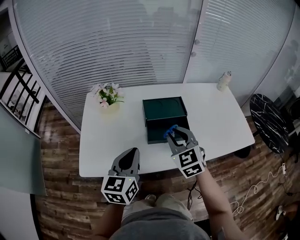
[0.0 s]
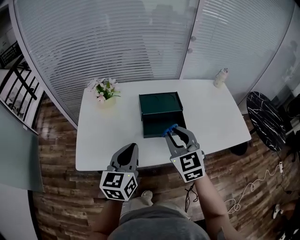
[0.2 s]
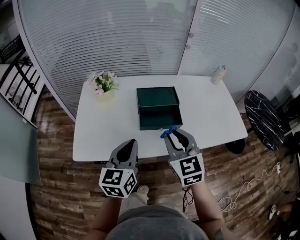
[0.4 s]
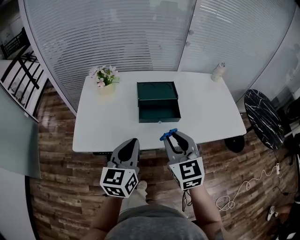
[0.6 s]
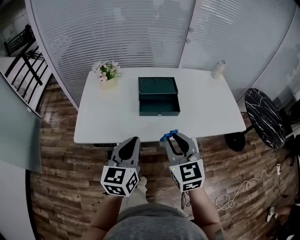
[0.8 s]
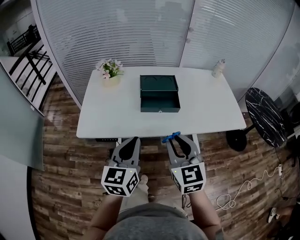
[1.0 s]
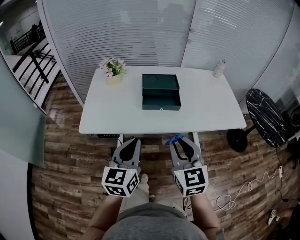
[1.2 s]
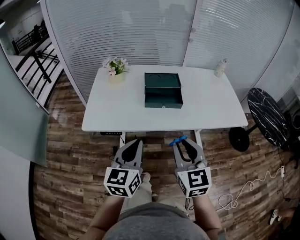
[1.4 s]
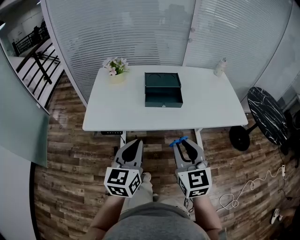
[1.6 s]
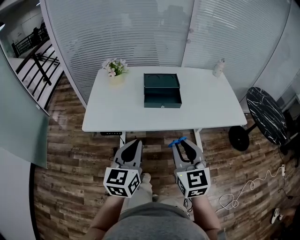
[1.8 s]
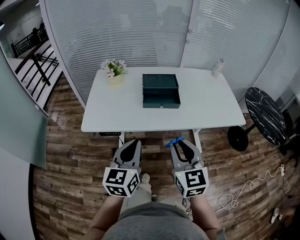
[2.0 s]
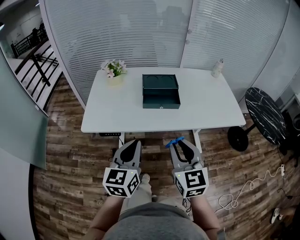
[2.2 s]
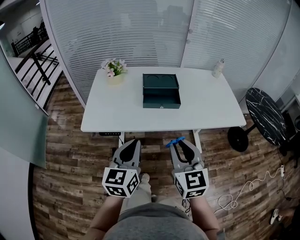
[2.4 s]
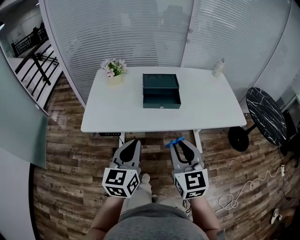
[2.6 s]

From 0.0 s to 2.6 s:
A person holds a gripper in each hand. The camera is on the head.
From 0.0 s to 1.2 s: Both grippers travel together backward, about 25 cm.
From 1.2 s to 2.6 s: The grippers stay close to where they were, moving slightly.

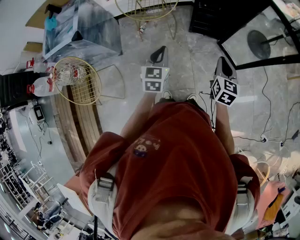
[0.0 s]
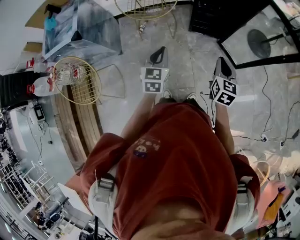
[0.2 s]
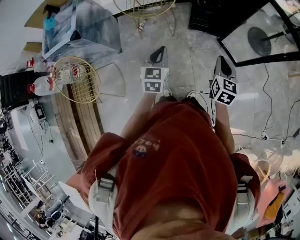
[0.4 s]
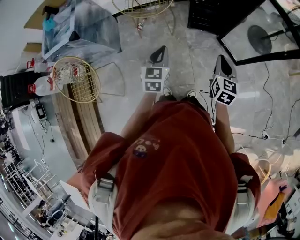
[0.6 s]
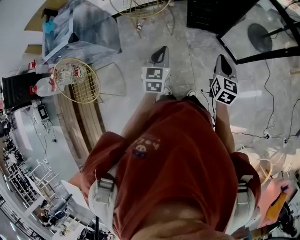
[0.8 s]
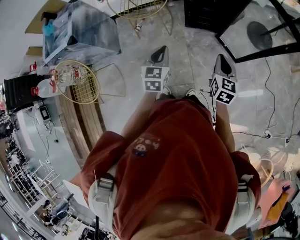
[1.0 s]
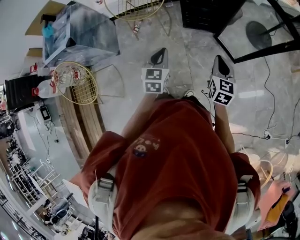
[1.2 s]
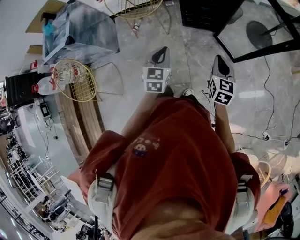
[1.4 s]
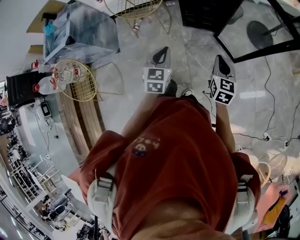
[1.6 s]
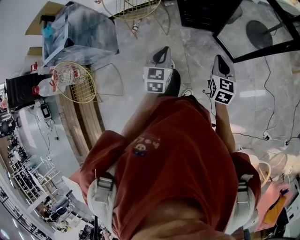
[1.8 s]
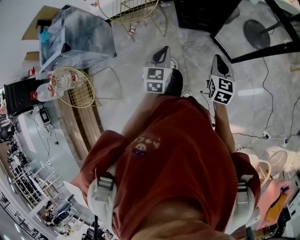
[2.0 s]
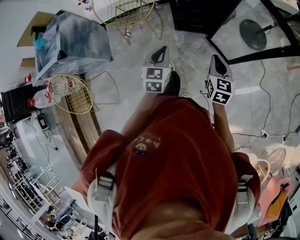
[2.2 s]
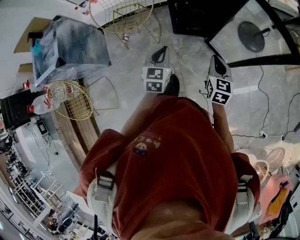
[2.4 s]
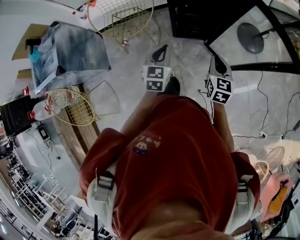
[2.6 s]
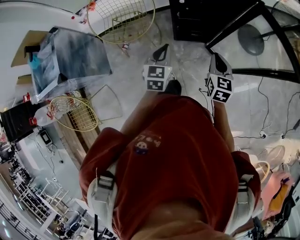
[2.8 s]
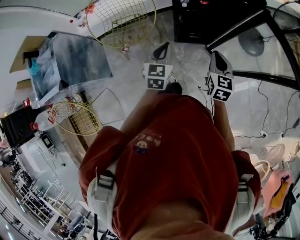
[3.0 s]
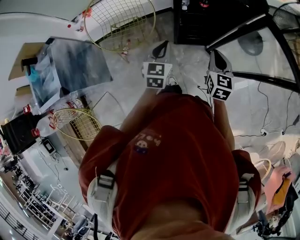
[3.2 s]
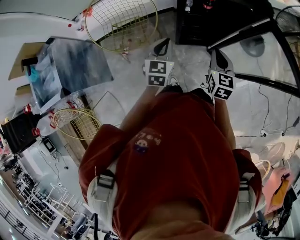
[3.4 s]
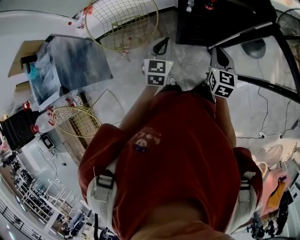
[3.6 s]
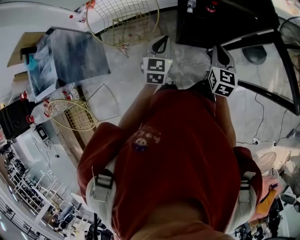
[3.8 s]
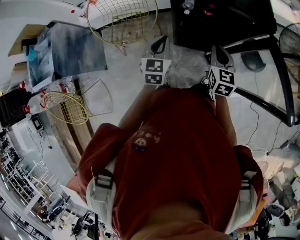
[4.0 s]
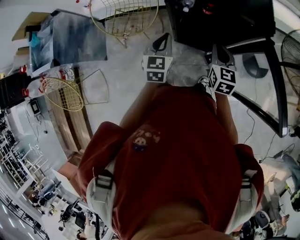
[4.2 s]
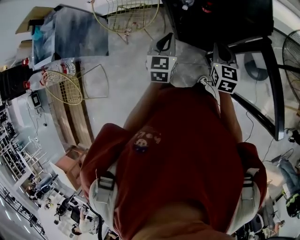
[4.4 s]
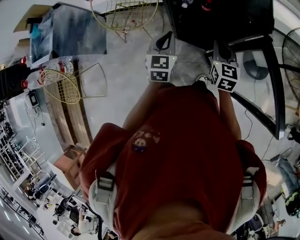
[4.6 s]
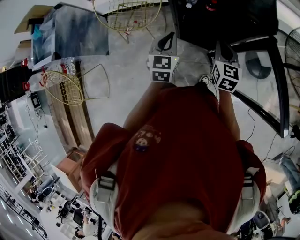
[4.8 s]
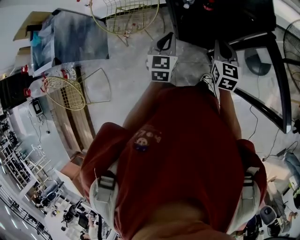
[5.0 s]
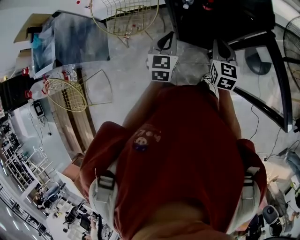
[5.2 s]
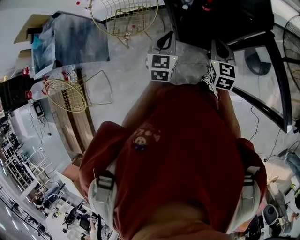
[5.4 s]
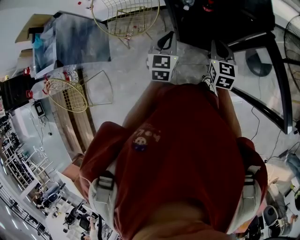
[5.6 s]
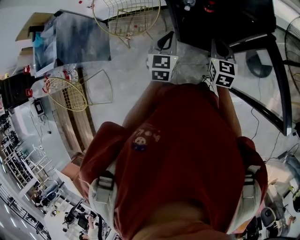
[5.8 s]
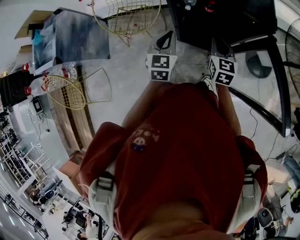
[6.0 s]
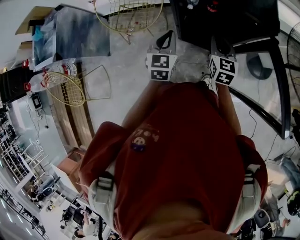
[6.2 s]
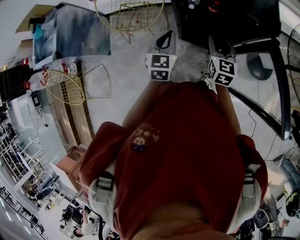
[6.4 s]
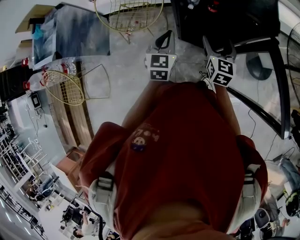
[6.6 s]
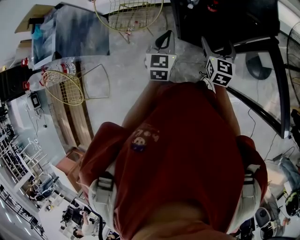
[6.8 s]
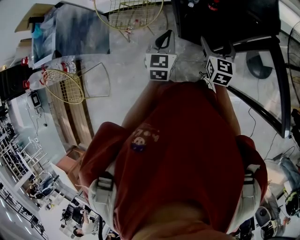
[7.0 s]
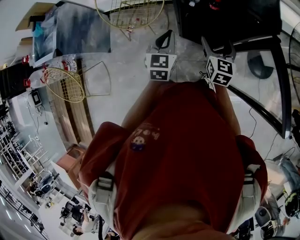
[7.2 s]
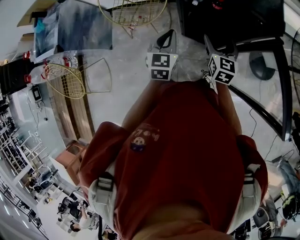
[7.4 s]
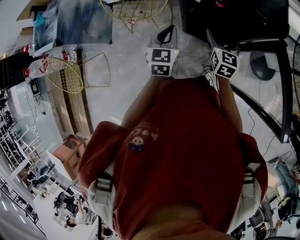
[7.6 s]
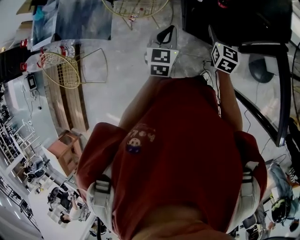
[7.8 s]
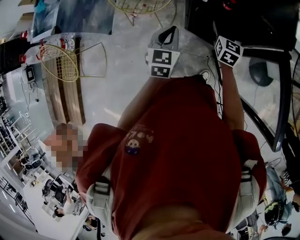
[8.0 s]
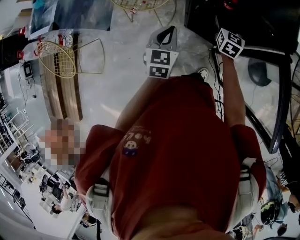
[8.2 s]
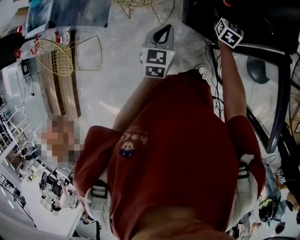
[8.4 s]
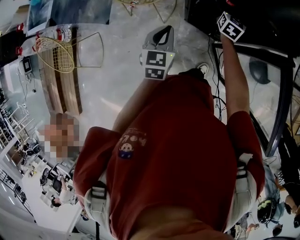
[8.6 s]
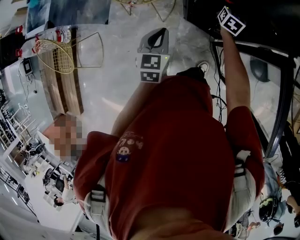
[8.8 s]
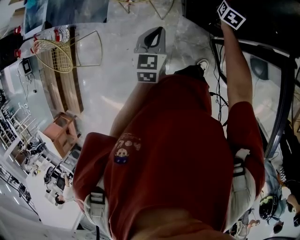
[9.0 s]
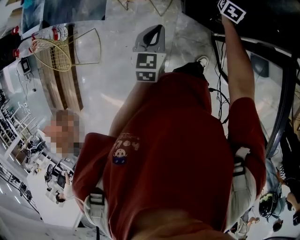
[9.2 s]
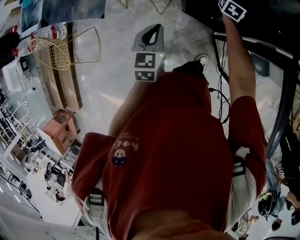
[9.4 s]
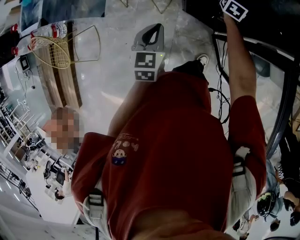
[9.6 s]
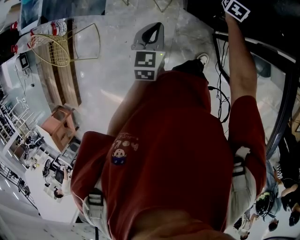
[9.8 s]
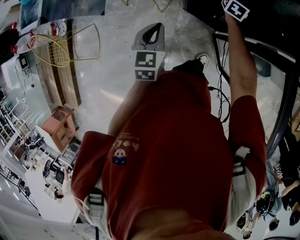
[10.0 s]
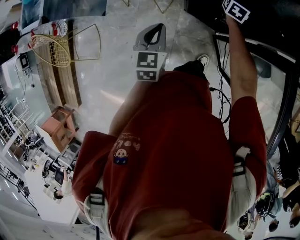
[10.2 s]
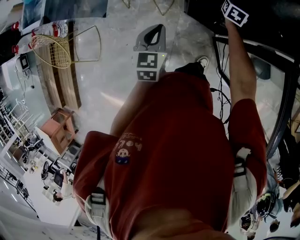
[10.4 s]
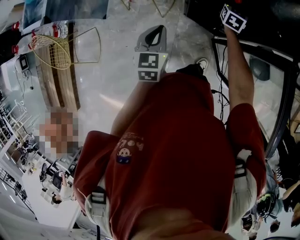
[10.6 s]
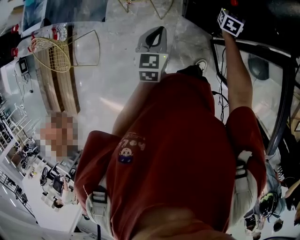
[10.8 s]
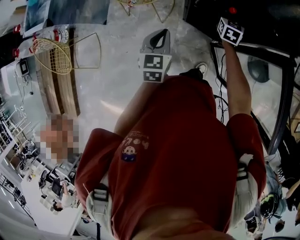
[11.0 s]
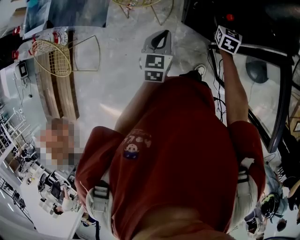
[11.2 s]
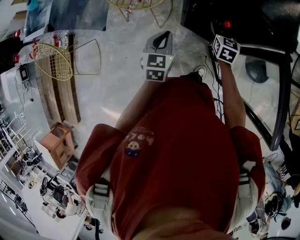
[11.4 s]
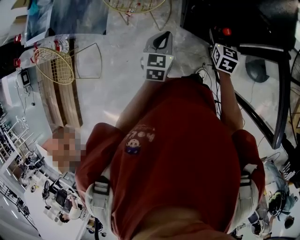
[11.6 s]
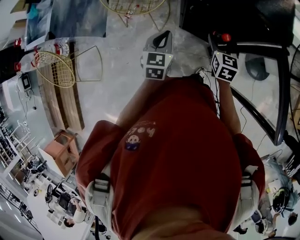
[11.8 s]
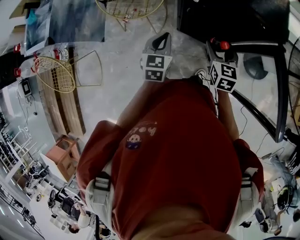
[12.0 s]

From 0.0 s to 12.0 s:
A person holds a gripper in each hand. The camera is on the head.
From 0.0 s to 1.6 s: Both grippers travel together to the right, roughly 15 cm.
From 1.6 s to 3.0 s: The two grippers go some 25 cm forward.
From 3.0 s to 4.4 s: The left gripper shifts some 15 cm to the right and forward. The right gripper heads forward and to the right, covering approximately 15 cm, and rotates some 20 degrees.
From 4.4 s to 6.0 s: The grippers move only a little.
From 6.0 s to 7.6 s: The right gripper opens its fingers.
From 7.6 s to 9.0 s: The right gripper shifts approximately 20 cm forward and downward, while the left gripper moves approximately 5 cm.
From 9.0 s to 10.4 s: There are only small adjustments of the grippers.
From 10.4 s to 12.0 s: The right gripper moves backward and upward, approximately 25 cm.

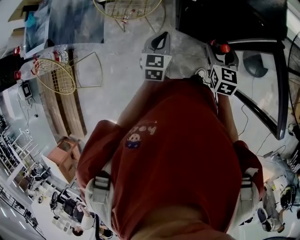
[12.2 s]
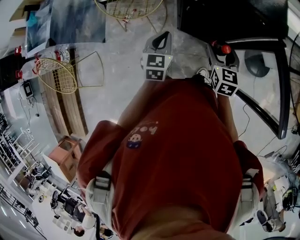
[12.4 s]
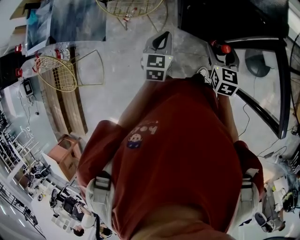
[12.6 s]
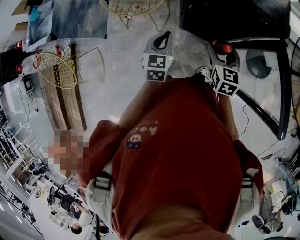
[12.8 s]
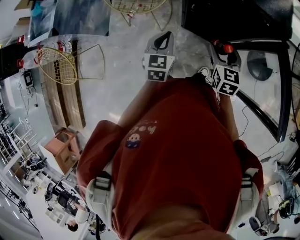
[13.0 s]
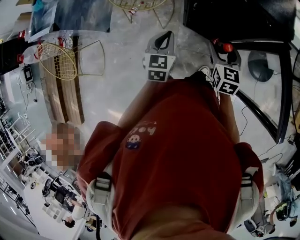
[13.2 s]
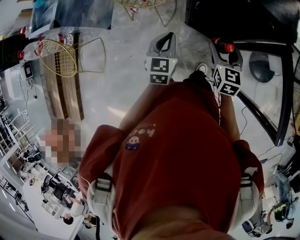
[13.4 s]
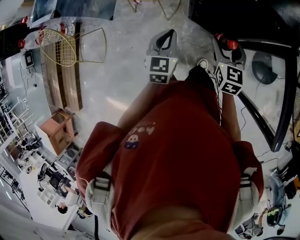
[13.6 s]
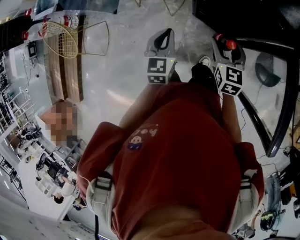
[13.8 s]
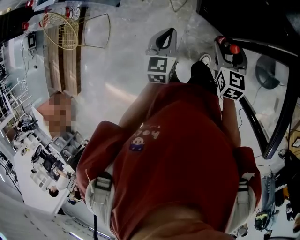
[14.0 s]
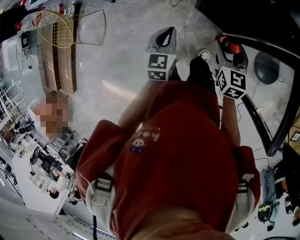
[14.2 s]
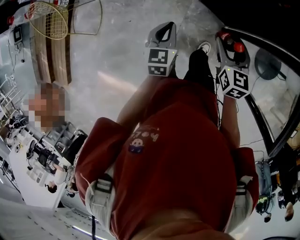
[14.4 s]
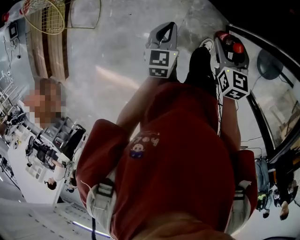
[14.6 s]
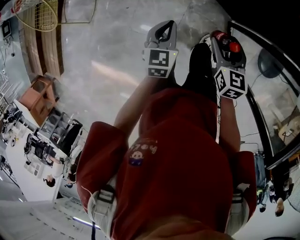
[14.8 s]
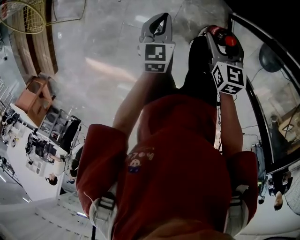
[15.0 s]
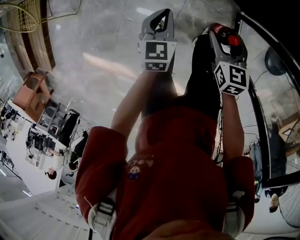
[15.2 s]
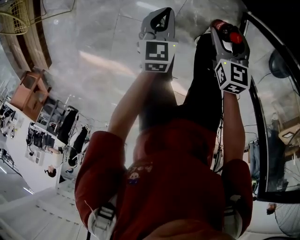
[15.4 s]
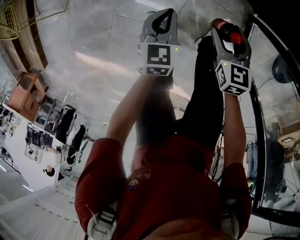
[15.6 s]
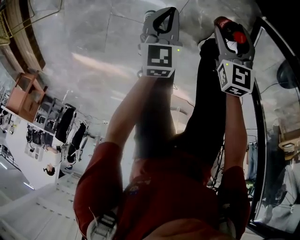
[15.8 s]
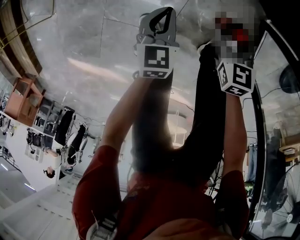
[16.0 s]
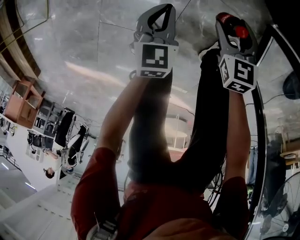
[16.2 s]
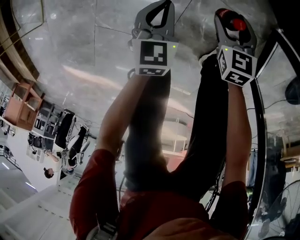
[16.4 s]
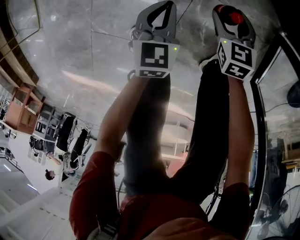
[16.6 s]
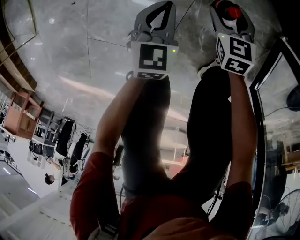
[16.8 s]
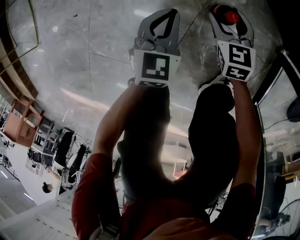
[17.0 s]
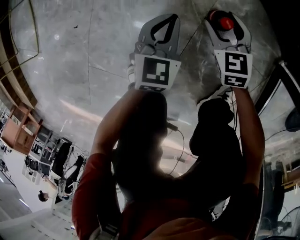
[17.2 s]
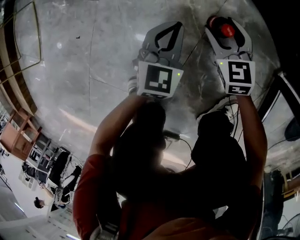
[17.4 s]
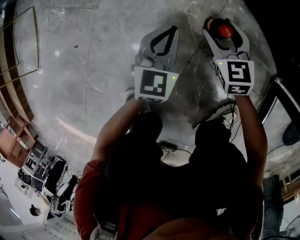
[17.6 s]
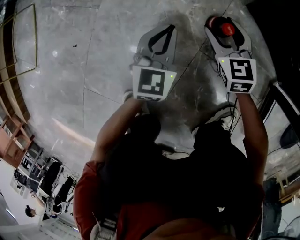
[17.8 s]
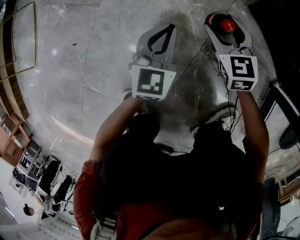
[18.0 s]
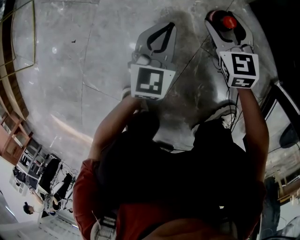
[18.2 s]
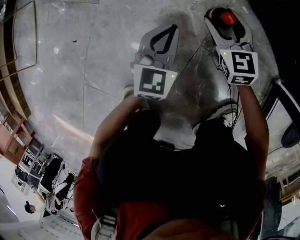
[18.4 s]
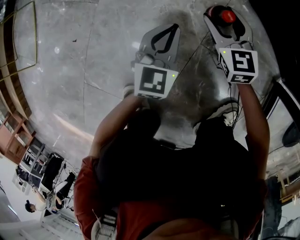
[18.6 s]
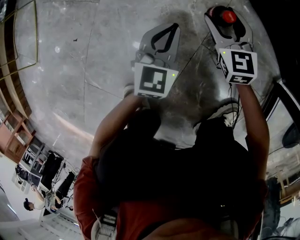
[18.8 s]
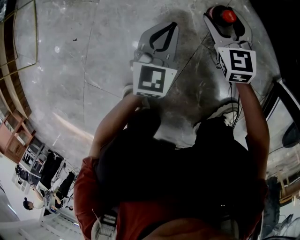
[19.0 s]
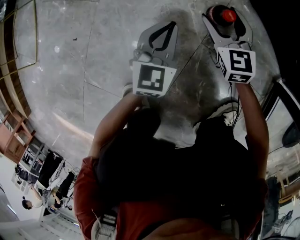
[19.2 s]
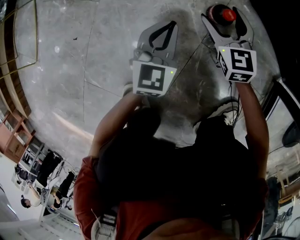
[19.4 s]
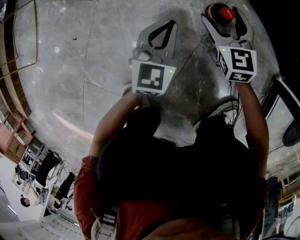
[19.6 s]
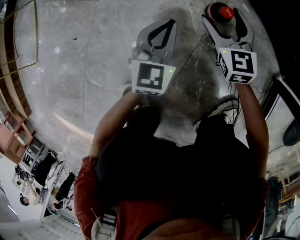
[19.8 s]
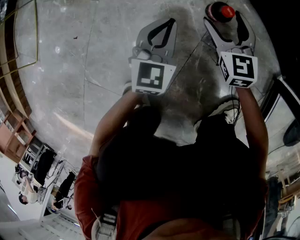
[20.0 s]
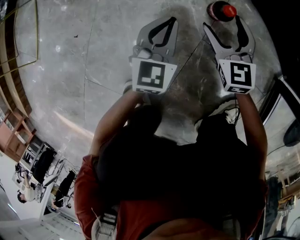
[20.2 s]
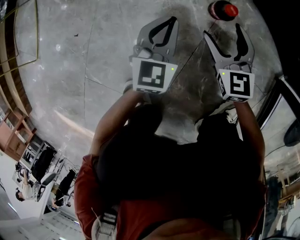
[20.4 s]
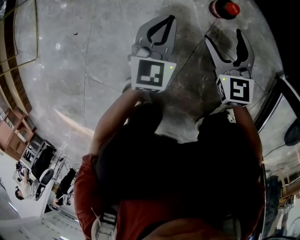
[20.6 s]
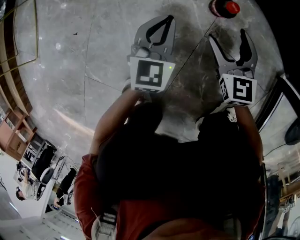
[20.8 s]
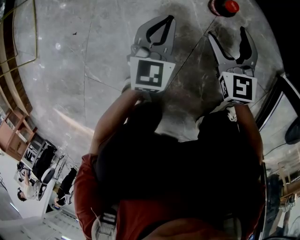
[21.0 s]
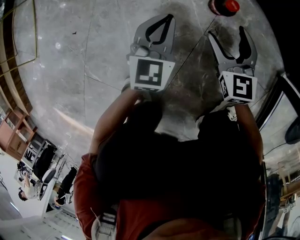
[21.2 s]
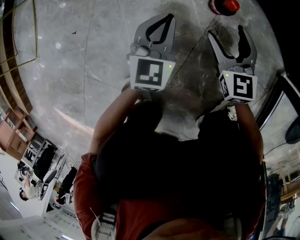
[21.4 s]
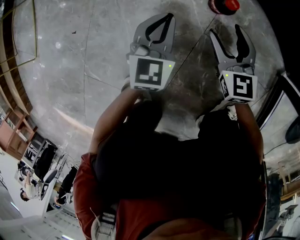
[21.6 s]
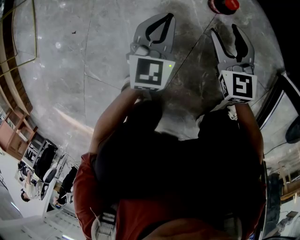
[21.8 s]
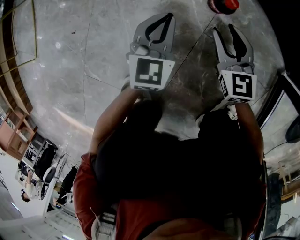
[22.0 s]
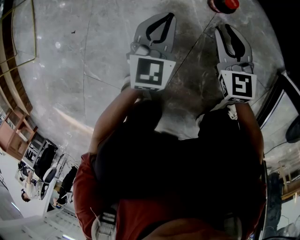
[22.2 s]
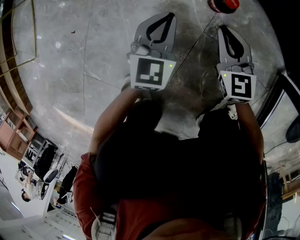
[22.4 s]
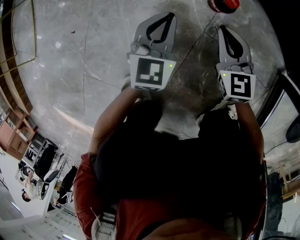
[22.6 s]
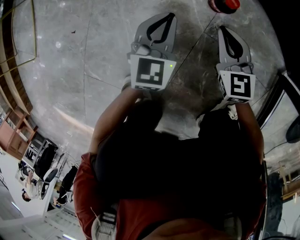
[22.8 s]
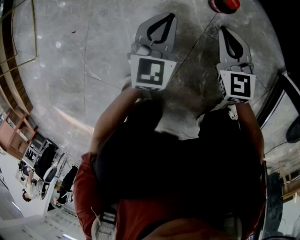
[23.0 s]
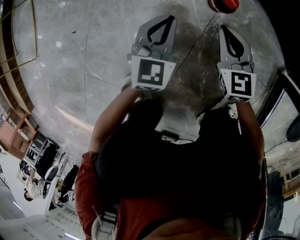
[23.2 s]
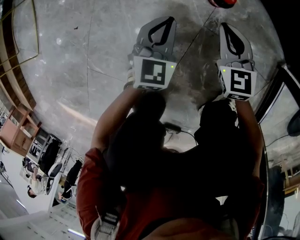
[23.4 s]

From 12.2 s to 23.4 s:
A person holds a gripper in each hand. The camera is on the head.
From 12.2 s to 13.8 s: The left gripper goes some 5 cm backward.
From 13.8 s to 15.4 s: Both grippers travel together downward and to the left, some 35 cm. The right gripper turns by roughly 20 degrees.
From 15.4 s to 17.0 s: Both grippers travel together downward, about 40 cm.
From 17.0 s to 18.6 s: The right gripper heads forward, covering roughly 10 cm, and turns by some 20 degrees. Meanwhile the left gripper changes place by roughly 5 cm.
From 18.6 s to 20.2 s: There are only small adjustments of the grippers.
From 20.2 s to 21.8 s: The right gripper closes up.
From 21.8 s to 23.4 s: The right gripper closes its fingers.
